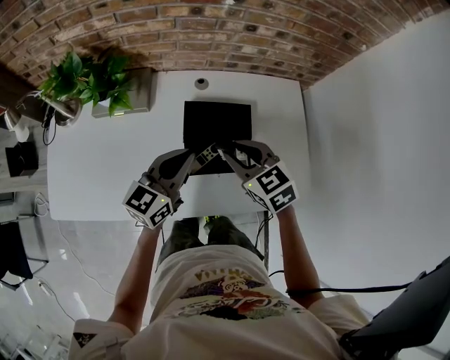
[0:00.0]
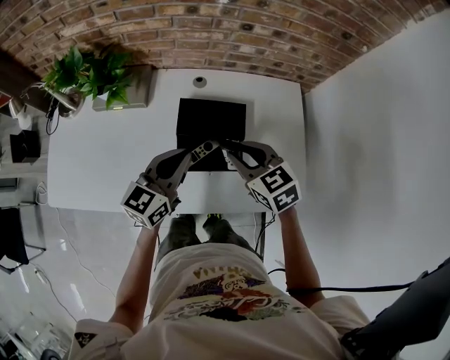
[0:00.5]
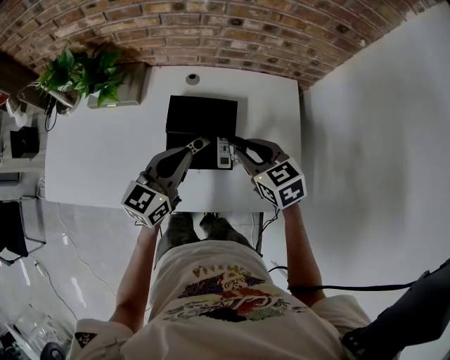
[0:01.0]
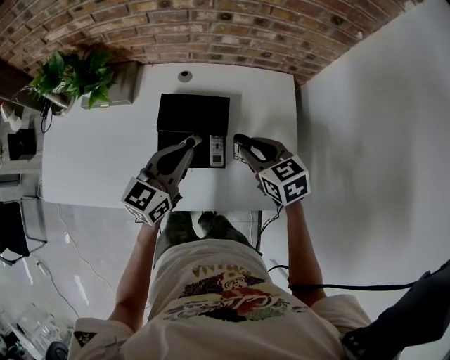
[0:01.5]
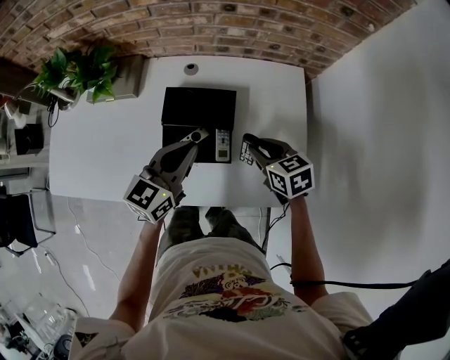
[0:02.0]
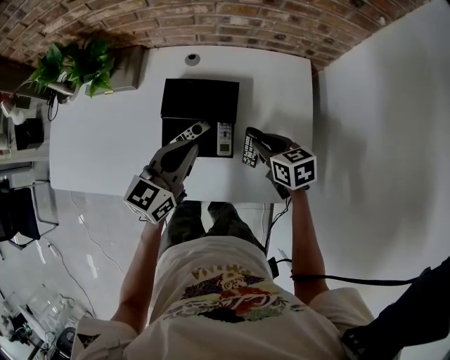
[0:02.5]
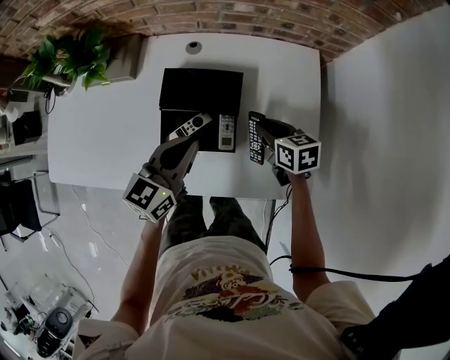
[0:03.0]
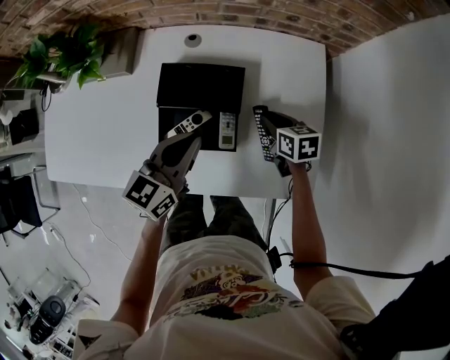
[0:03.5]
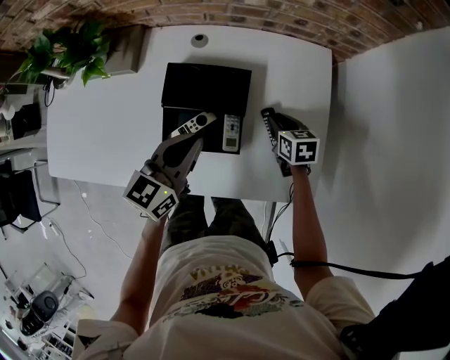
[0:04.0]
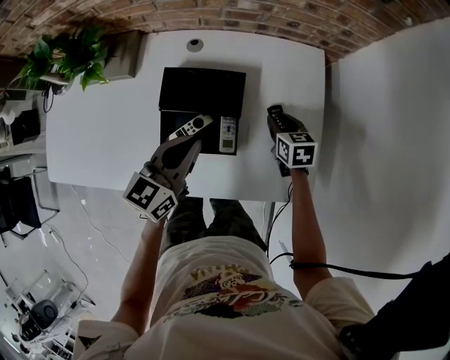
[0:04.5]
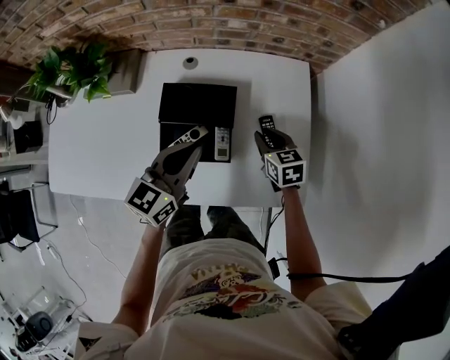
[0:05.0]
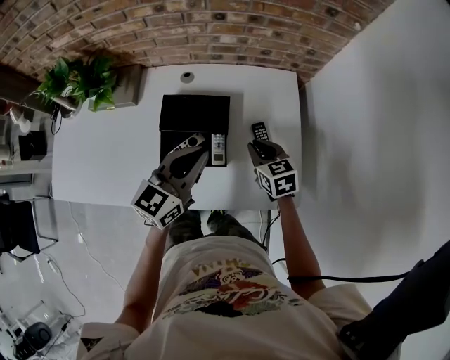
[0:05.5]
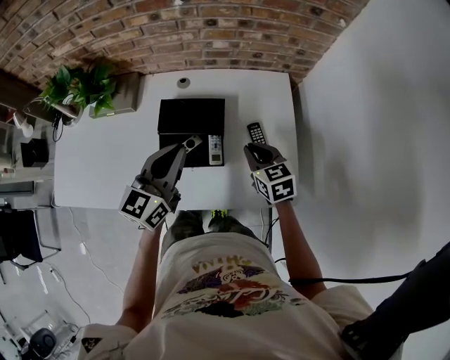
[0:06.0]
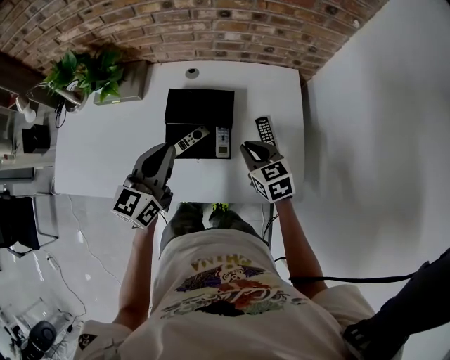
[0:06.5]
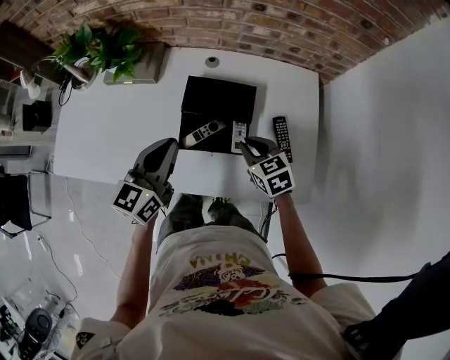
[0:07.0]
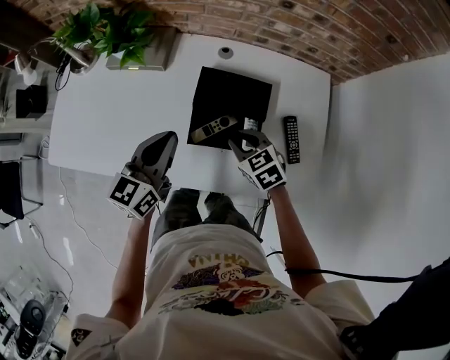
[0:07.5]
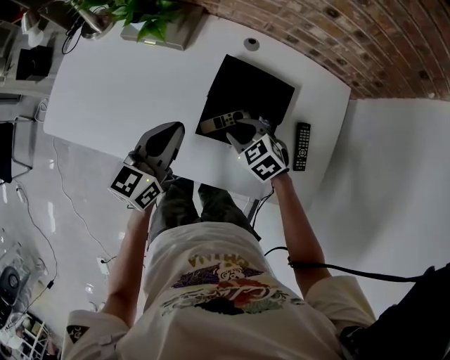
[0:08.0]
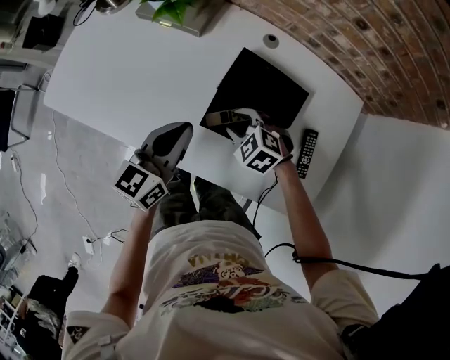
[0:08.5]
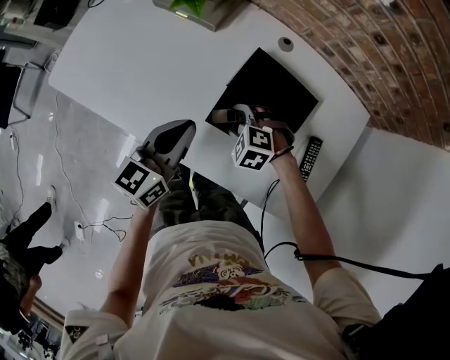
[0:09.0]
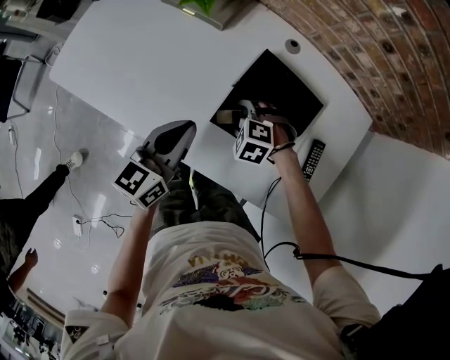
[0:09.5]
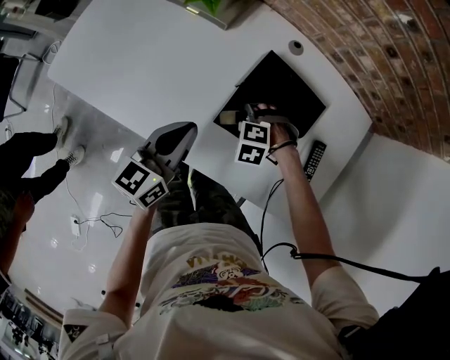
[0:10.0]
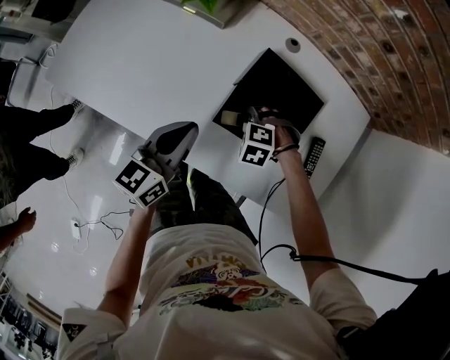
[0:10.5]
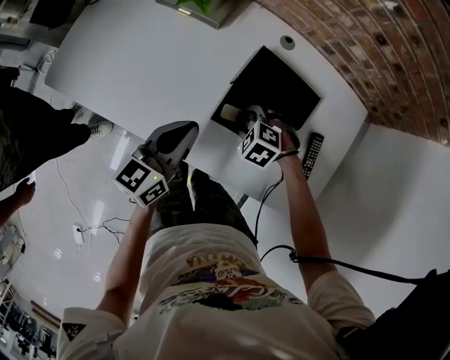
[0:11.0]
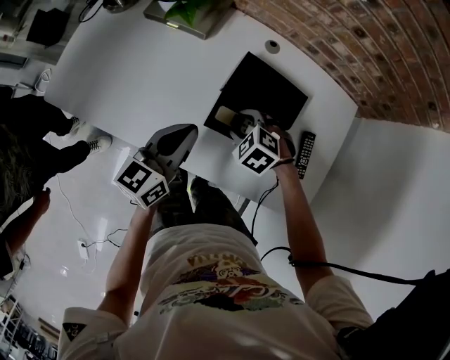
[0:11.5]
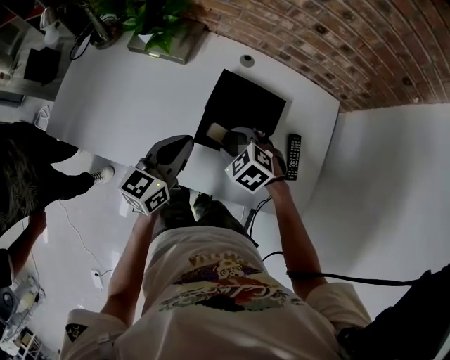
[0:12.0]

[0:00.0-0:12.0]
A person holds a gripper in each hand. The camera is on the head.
0:00.0 to 0:02.0: The right gripper moves to the right and downward, approximately 20 cm, while the left gripper heads to the right, covering some 10 cm.
0:02.0 to 0:04.0: The right gripper goes about 15 cm downward and forward.
0:04.0 to 0:06.0: The left gripper shifts approximately 10 cm upward, while the right gripper goes about 15 cm upward and backward, and swivels roughly 20 degrees.
0:06.0 to 0:08.0: The grippers both shift to the left and downward by roughly 20 cm. The right gripper rotates about 50 degrees.
0:08.0 to 0:10.0: The right gripper is displaced downward by some 10 cm, twists approximately 50 degrees counterclockwise, seen from behind, and opens. Meanwhile the left gripper moves approximately 5 cm.
0:10.0 to 0:12.0: The right gripper shifts approximately 10 cm upward, and rotates about 40 degrees. Meanwhile the left gripper changes place by roughly 5 cm.

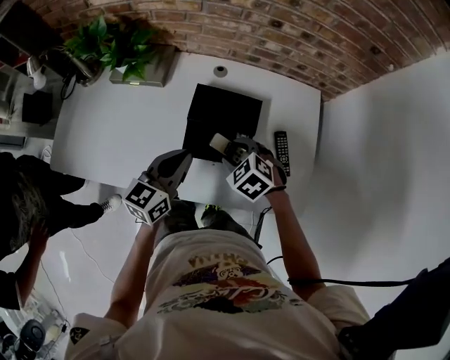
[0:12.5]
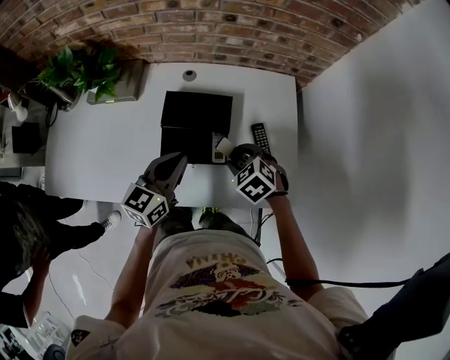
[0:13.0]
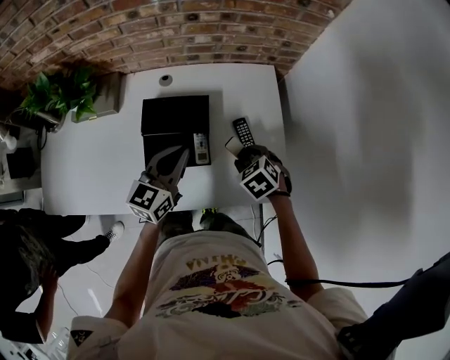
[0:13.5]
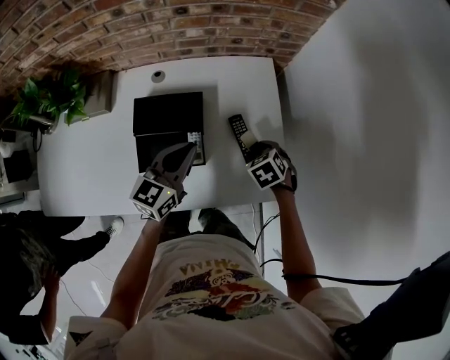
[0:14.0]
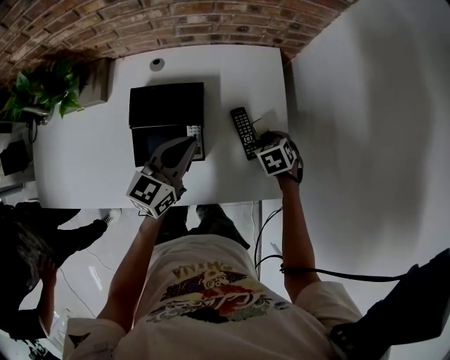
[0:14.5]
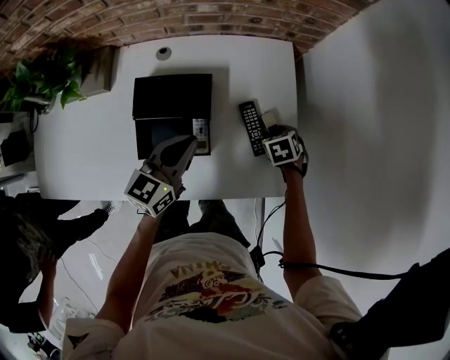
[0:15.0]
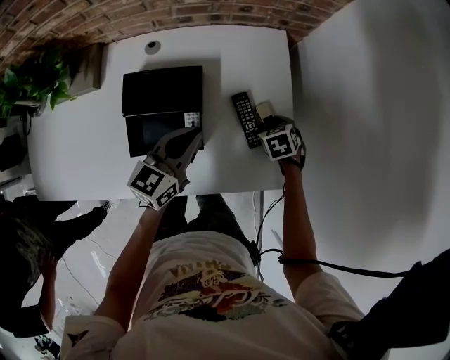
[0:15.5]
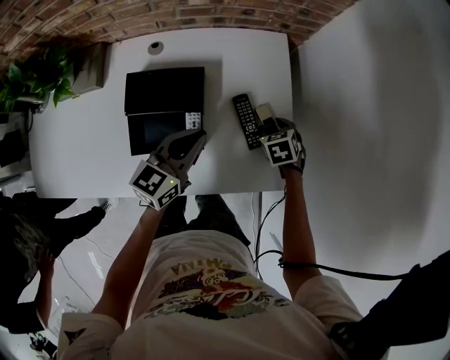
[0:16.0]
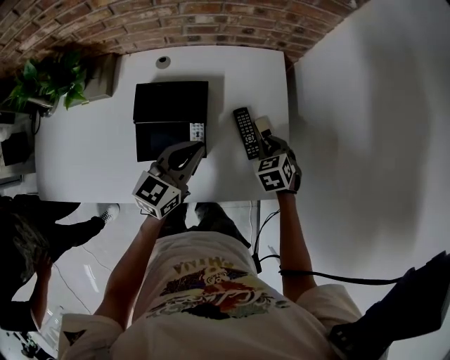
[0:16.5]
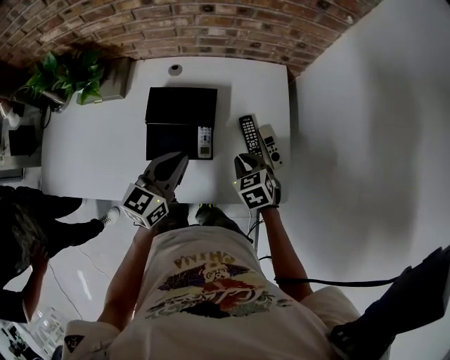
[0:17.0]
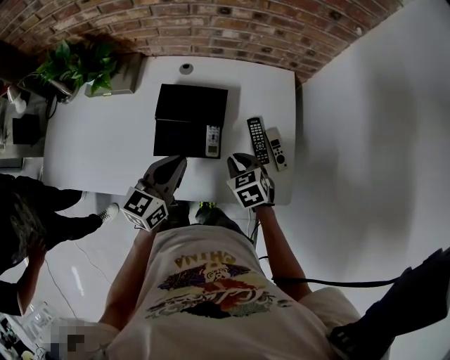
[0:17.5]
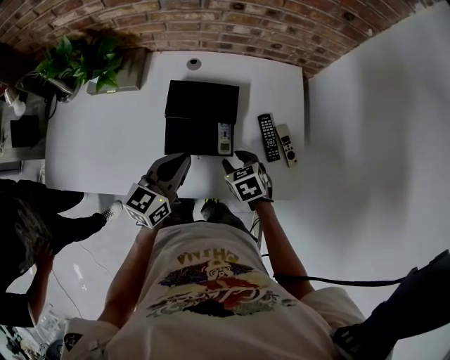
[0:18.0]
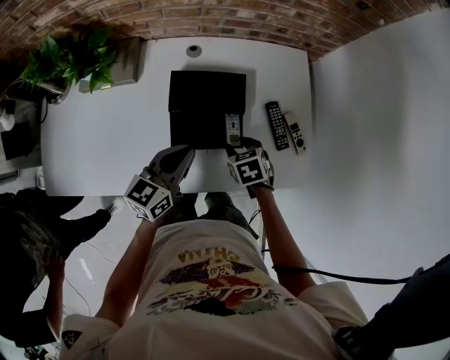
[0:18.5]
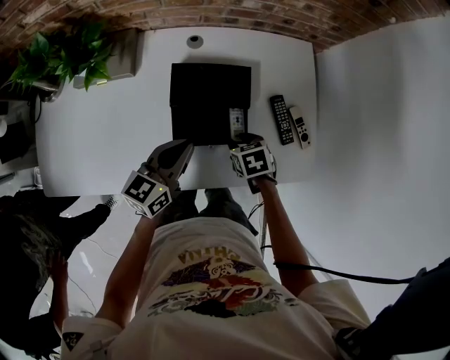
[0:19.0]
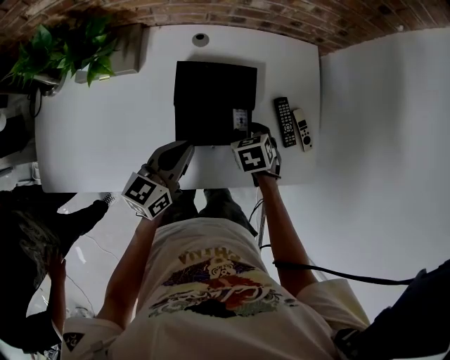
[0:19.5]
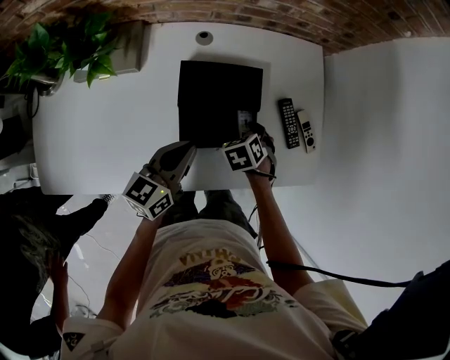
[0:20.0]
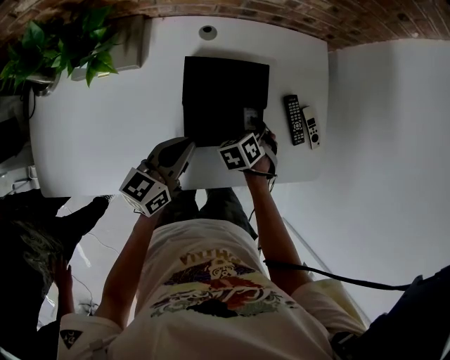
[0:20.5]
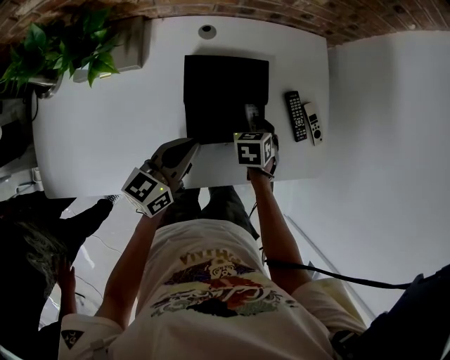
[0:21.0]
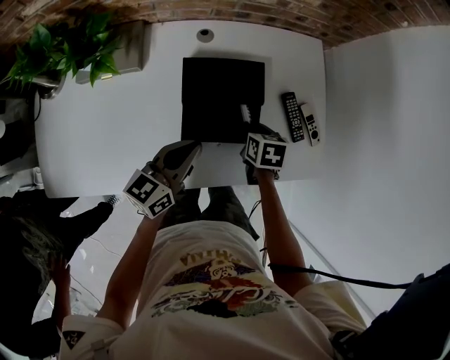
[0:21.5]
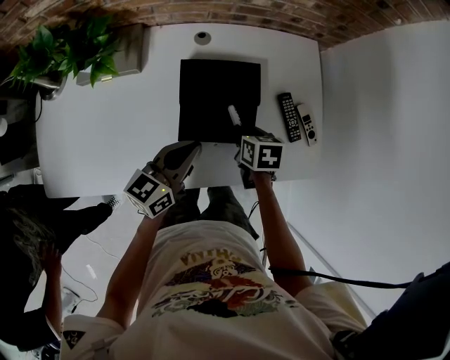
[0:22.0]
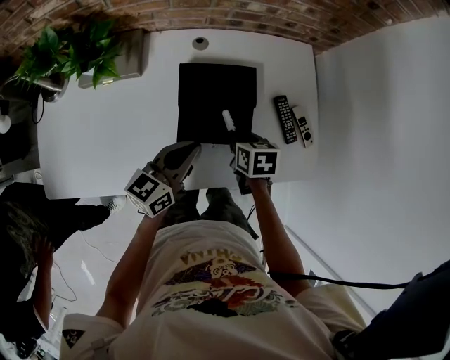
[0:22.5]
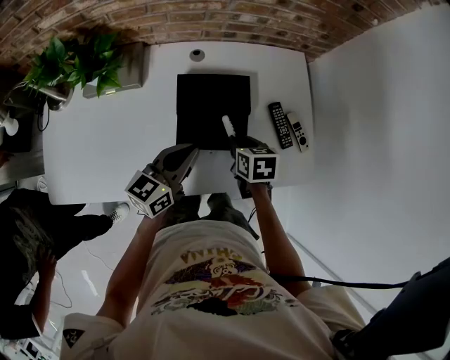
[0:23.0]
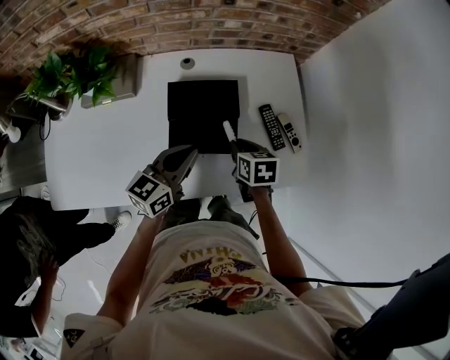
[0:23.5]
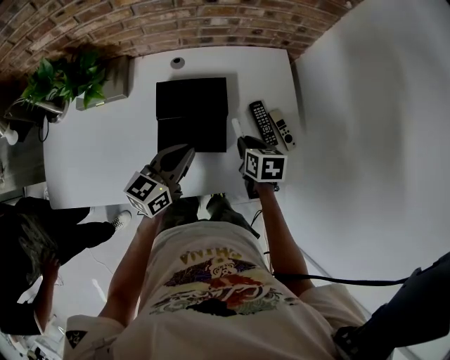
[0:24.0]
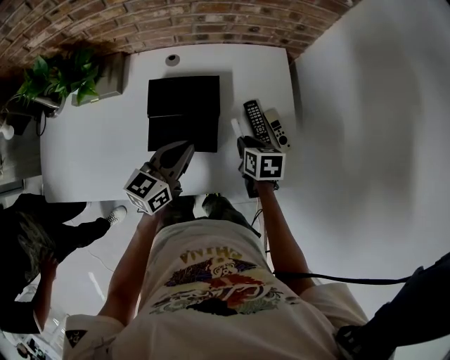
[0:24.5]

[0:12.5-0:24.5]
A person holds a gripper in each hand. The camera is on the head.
0:12.5 to 0:14.5: The left gripper ends up roughly 20 cm from where it was. The right gripper changes place by approximately 30 cm, and swivels approximately 40 degrees.
0:14.5 to 0:16.5: The right gripper closes its fingers.
0:16.5 to 0:18.5: Both grippers travel together to the left, some 20 cm.
0:18.5 to 0:20.5: The left gripper changes place by roughly 5 cm, while the right gripper moves roughly 5 cm, and swivels about 30 degrees.
0:20.5 to 0:22.5: The left gripper ends up about 5 cm from where it was, while the right gripper travels upward by about 5 cm, changes its angle by approximately 50 degrees, and closes up.
0:22.5 to 0:24.5: The grippers both shift to the right by some 10 cm.

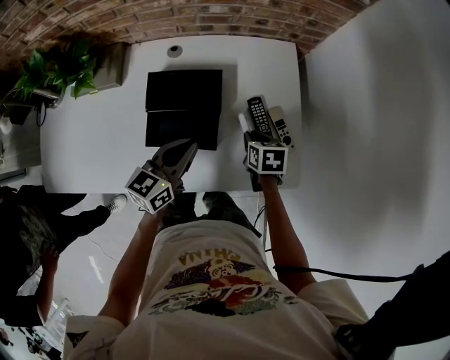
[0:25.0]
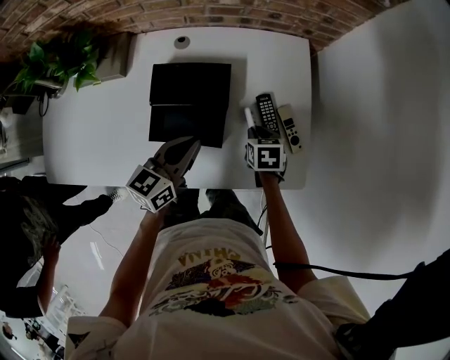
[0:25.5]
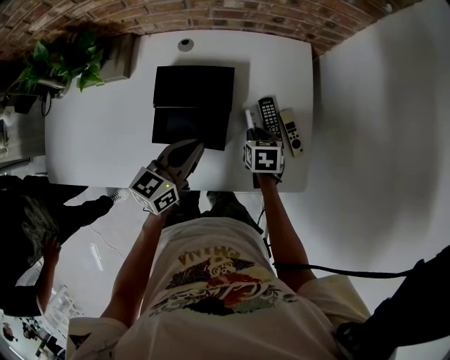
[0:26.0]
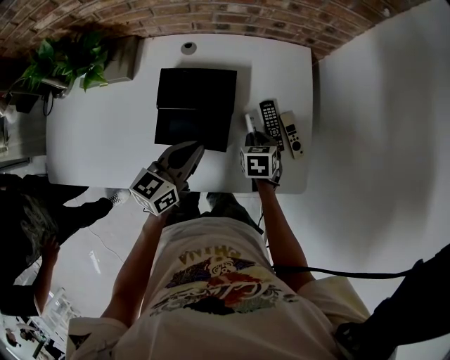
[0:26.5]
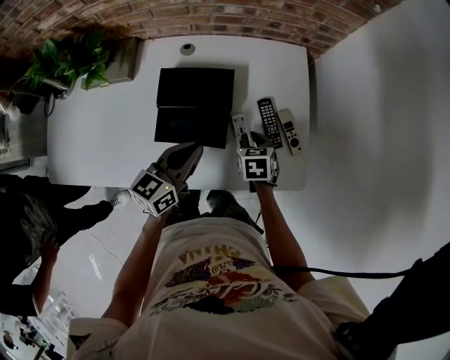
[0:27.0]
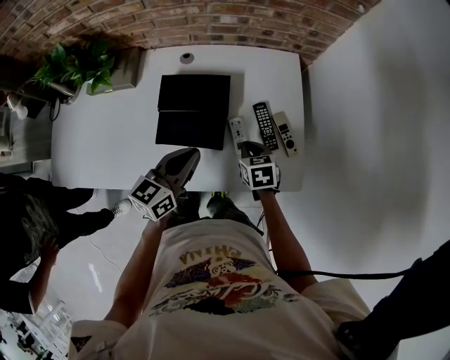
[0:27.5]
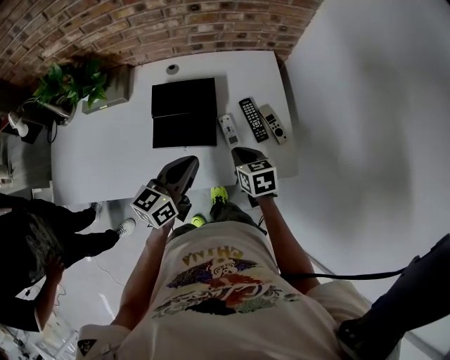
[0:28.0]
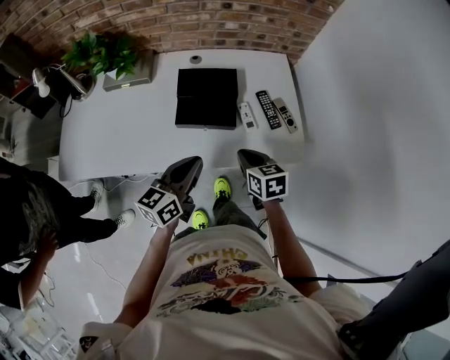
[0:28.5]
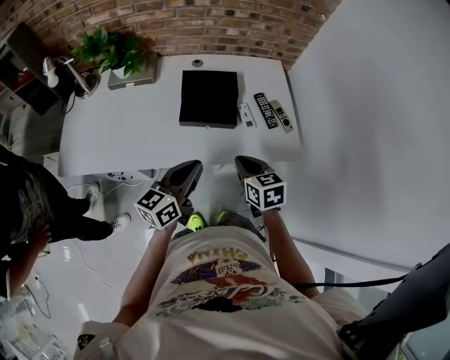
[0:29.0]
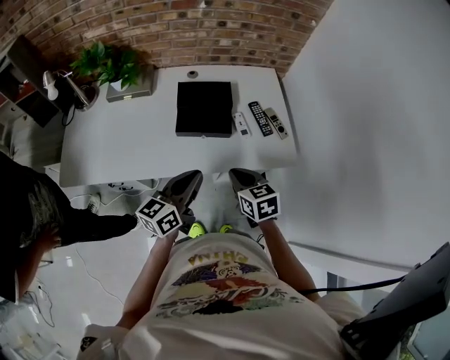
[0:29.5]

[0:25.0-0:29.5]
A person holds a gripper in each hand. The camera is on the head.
0:25.0 to 0:27.0: The grippers move only a little.
0:27.0 to 0:29.5: The right gripper is displaced backward and upward by roughly 30 cm, and turns by some 20 degrees. The left gripper moves backward, approximately 20 cm.
